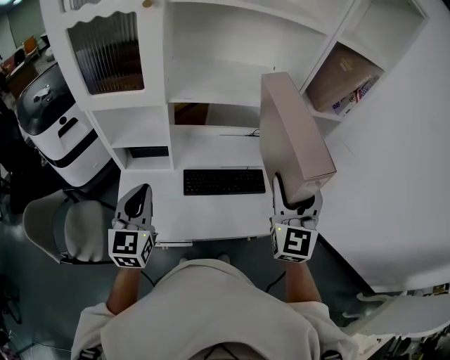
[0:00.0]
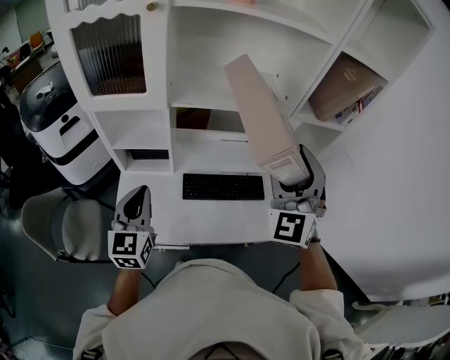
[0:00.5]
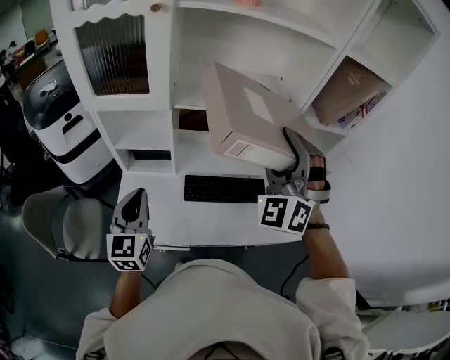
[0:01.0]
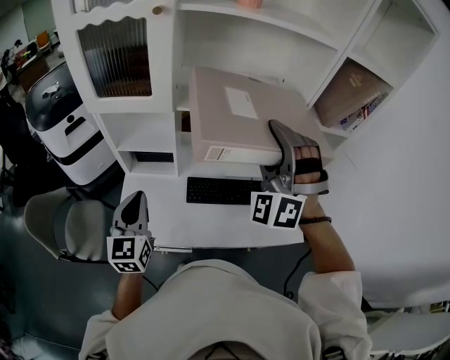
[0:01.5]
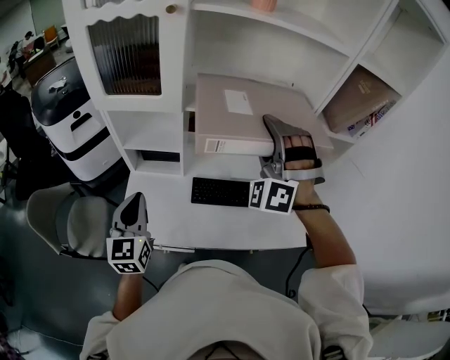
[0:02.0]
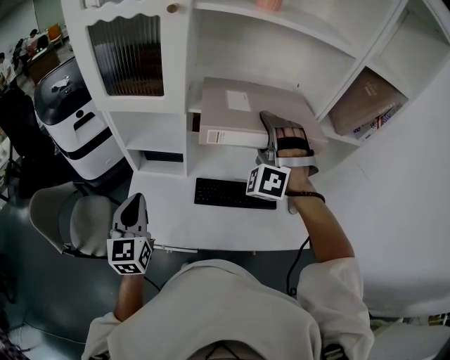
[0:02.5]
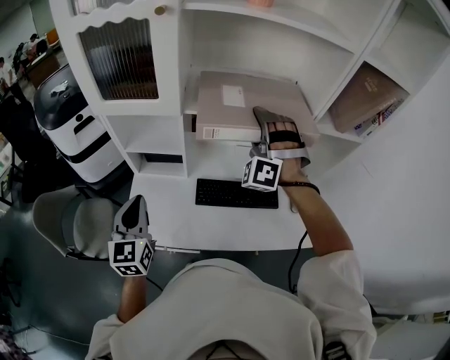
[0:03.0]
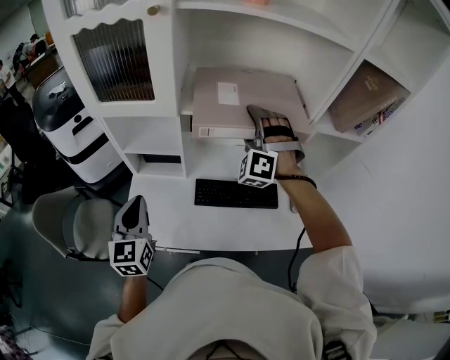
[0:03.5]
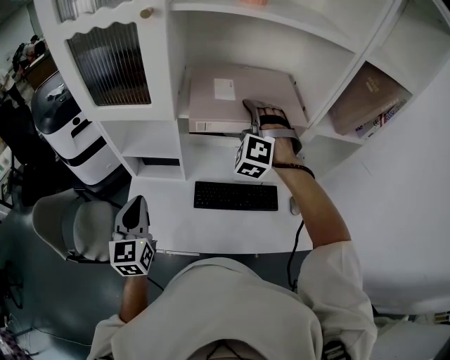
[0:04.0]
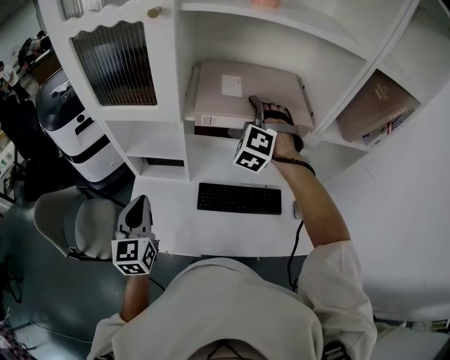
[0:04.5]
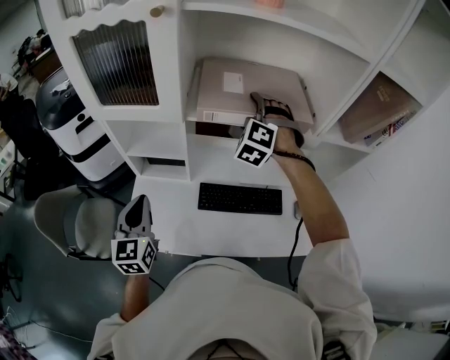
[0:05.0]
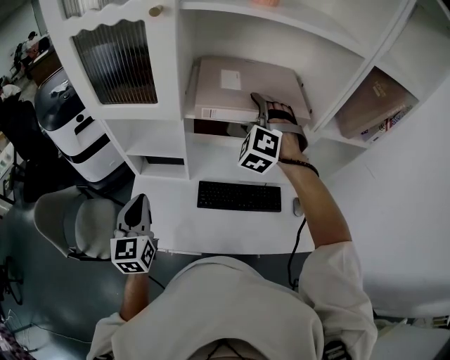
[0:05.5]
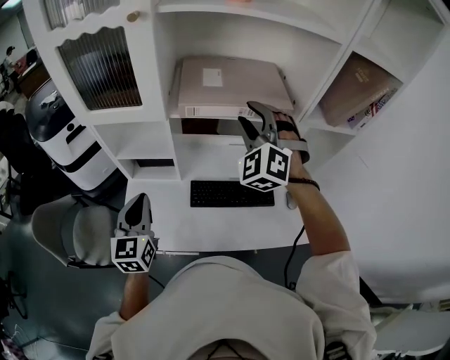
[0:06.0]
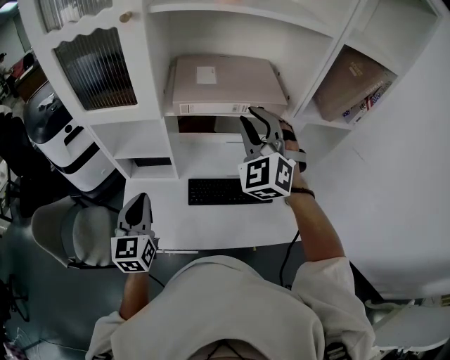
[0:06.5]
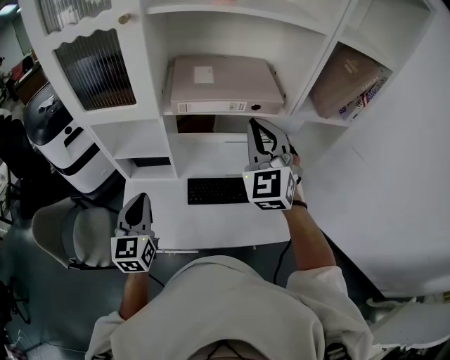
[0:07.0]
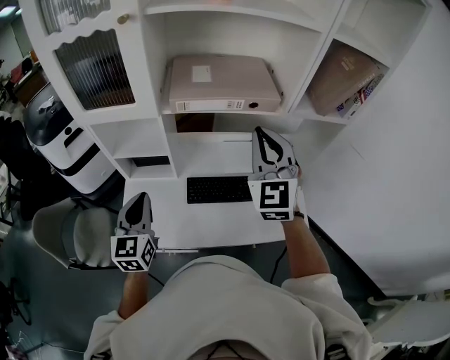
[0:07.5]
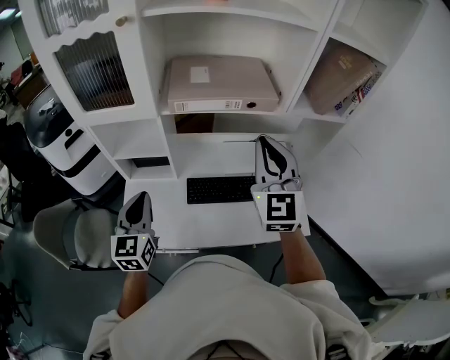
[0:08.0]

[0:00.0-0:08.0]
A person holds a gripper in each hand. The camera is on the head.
0:00.0 to 0:02.0: The right gripper goes approximately 20 cm forward and to the left, and twists approximately 70 degrees counterclockwise, seen from behind.
0:02.0 to 0:04.0: The right gripper goes roughly 15 cm forward and downward, and swivels about 20 degrees.
0:04.0 to 0:06.0: The right gripper is displaced upward and backward by approximately 10 cm, and closes its fingers.
0:06.0 to 0:08.0: The right gripper shifts roughly 15 cm backward and to the right, twists some 40 degrees clockwise, seen from behind, and closes.

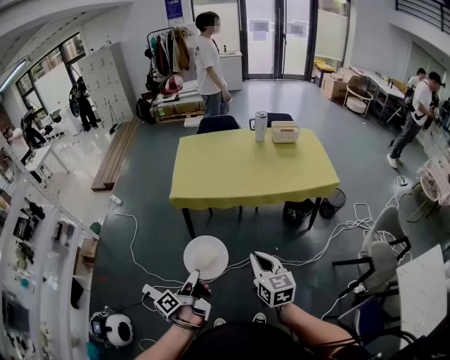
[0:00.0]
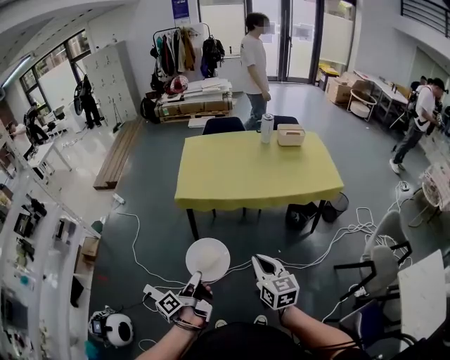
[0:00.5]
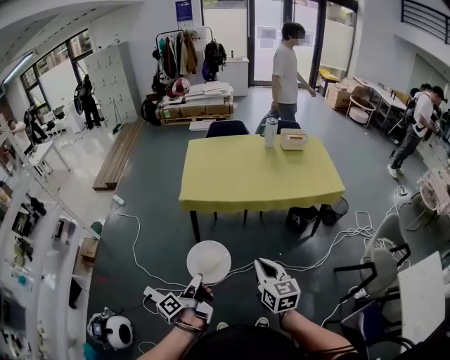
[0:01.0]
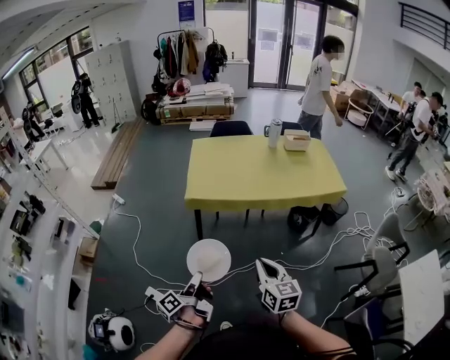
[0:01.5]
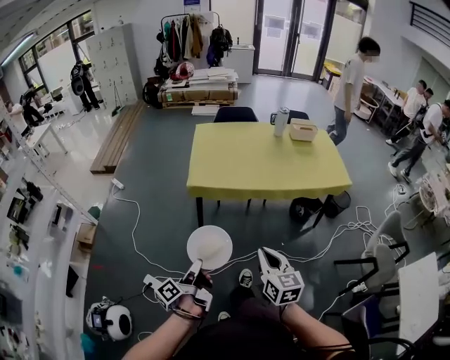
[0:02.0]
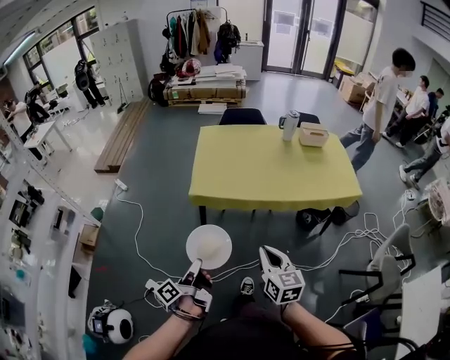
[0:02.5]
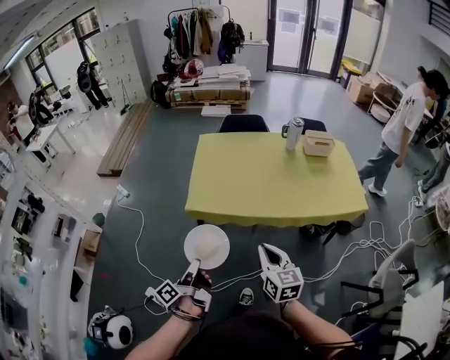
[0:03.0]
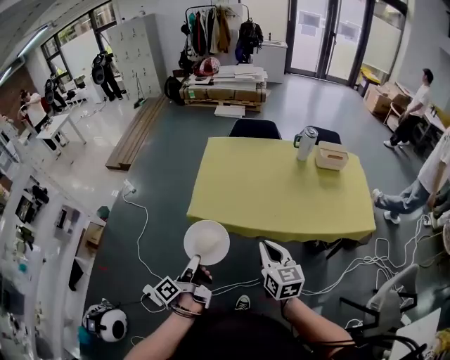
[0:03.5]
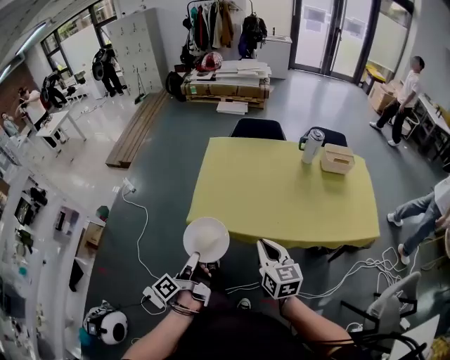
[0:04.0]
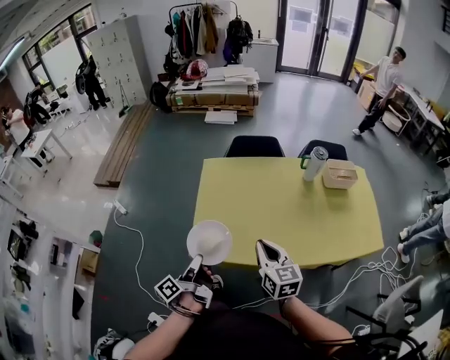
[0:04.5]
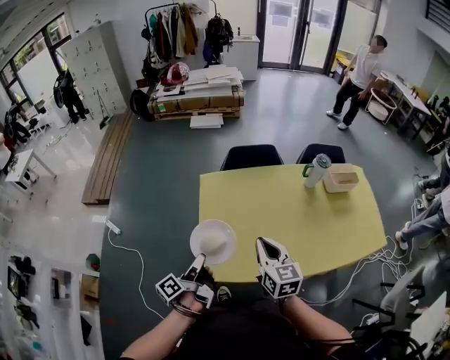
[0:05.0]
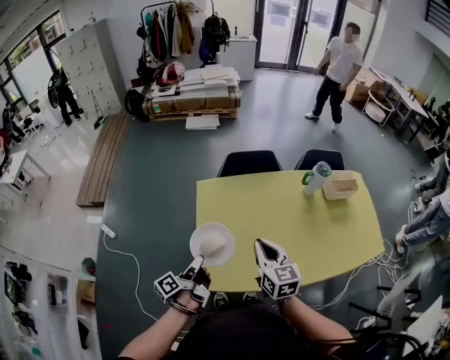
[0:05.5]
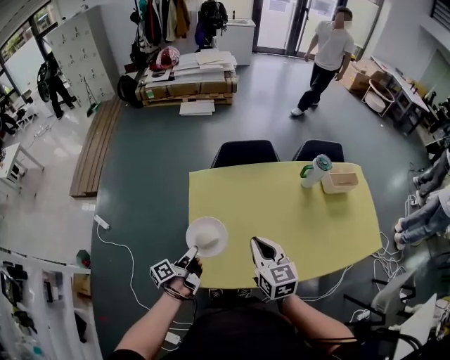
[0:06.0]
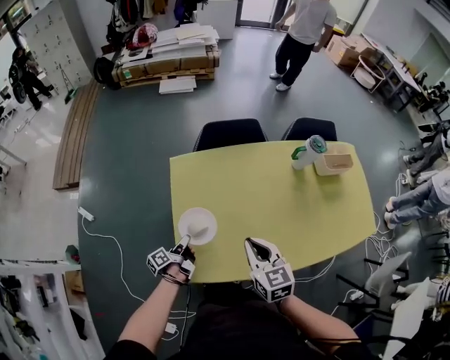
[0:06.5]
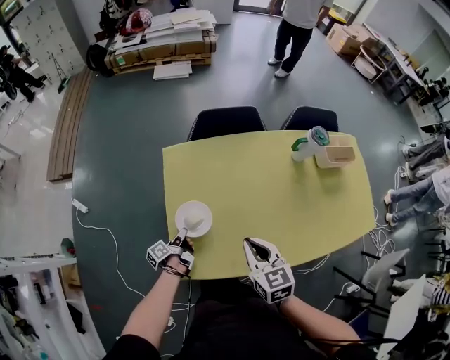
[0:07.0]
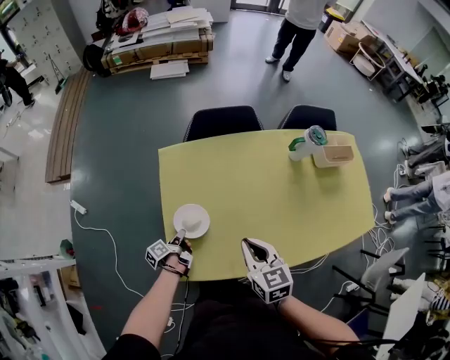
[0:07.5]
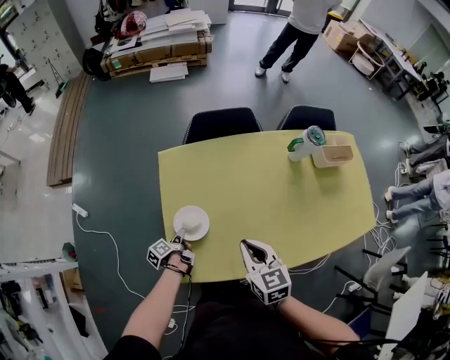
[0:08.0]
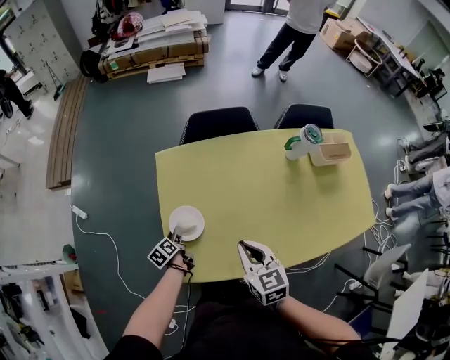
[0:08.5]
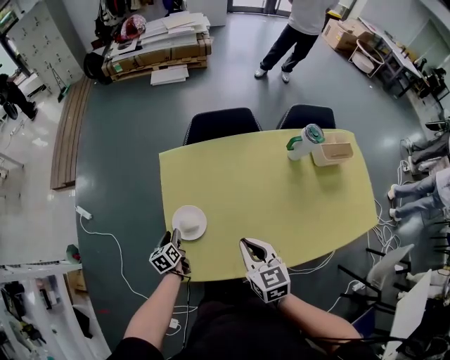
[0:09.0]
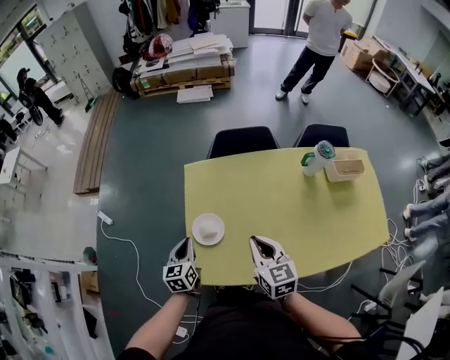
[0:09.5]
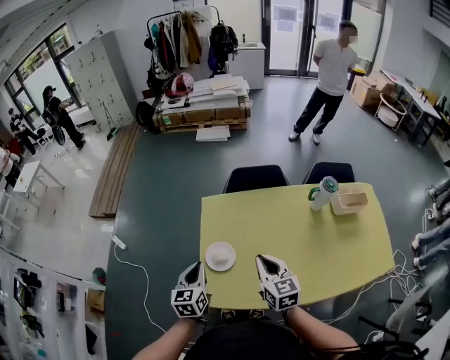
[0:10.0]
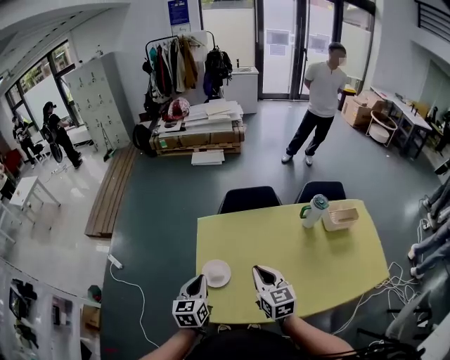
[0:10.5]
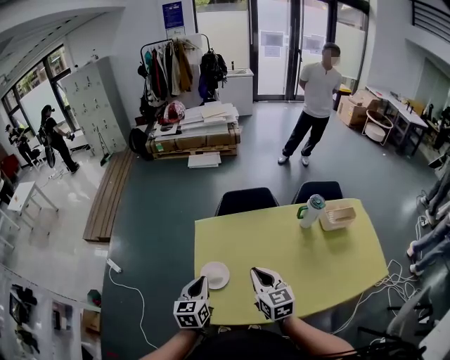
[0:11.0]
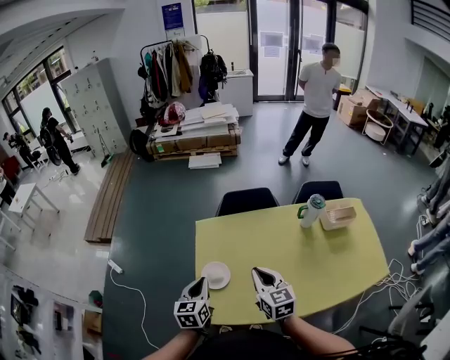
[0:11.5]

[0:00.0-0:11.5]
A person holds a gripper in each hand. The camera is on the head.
0:00.0 to 0:02.0: The right gripper changes place by some 10 cm.
0:02.0 to 0:04.0: The right gripper changes place by about 35 cm.
0:04.0 to 0:06.0: The right gripper moves approximately 35 cm.
0:06.0 to 0:07.5: The right gripper shifts approximately 10 cm downward.
0:09.5 to 0:11.5: The right gripper is displaced upward by about 5 cm.

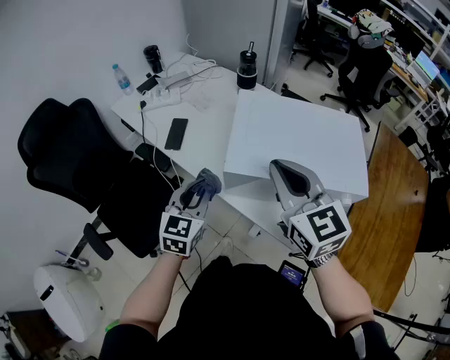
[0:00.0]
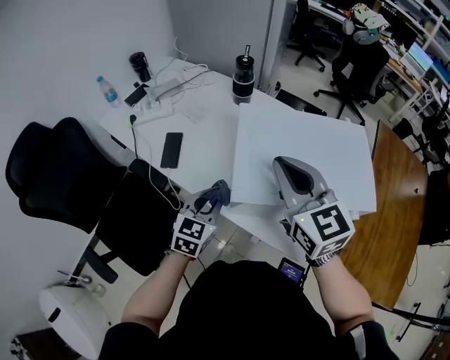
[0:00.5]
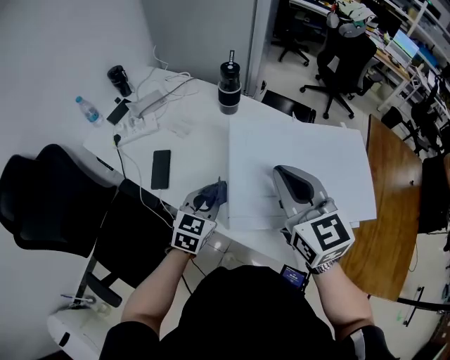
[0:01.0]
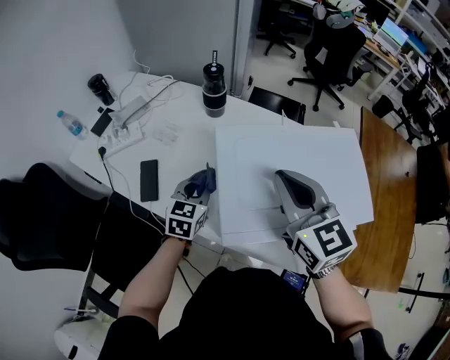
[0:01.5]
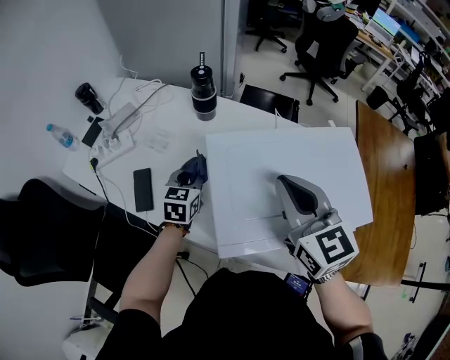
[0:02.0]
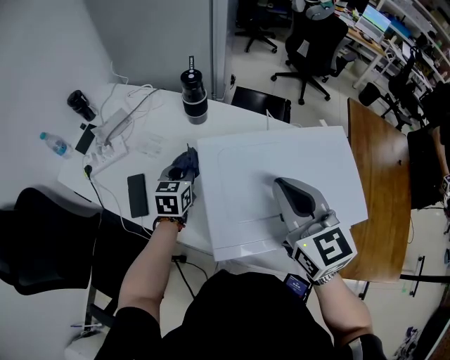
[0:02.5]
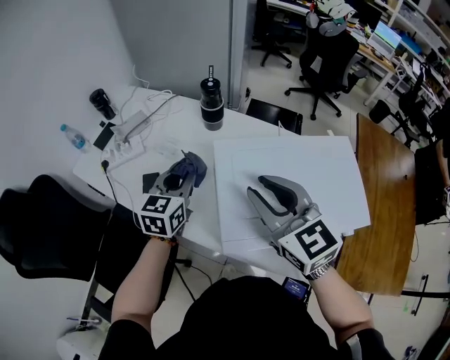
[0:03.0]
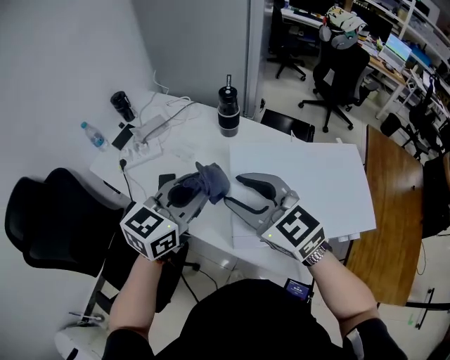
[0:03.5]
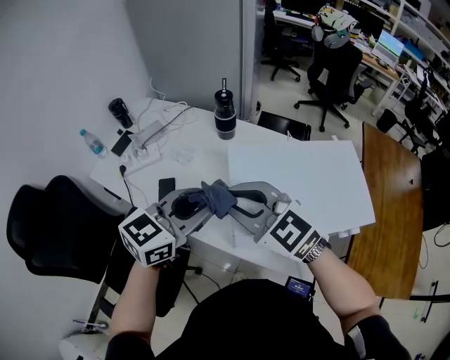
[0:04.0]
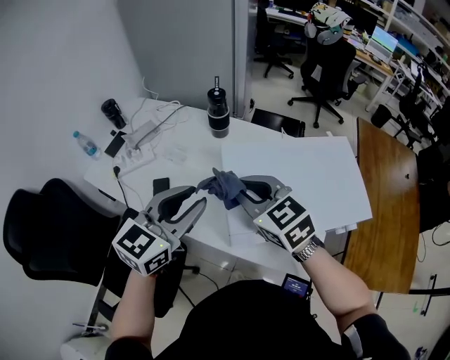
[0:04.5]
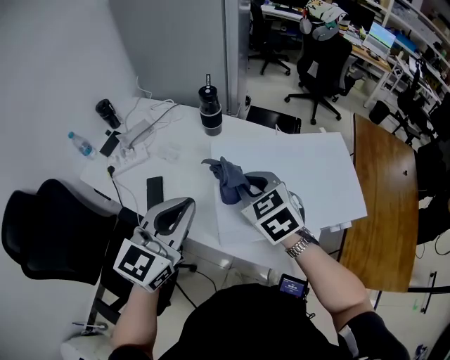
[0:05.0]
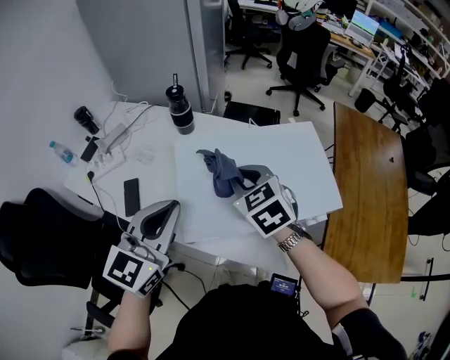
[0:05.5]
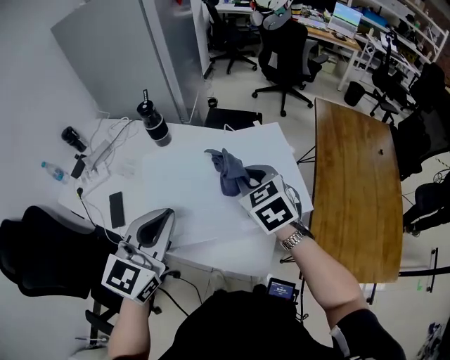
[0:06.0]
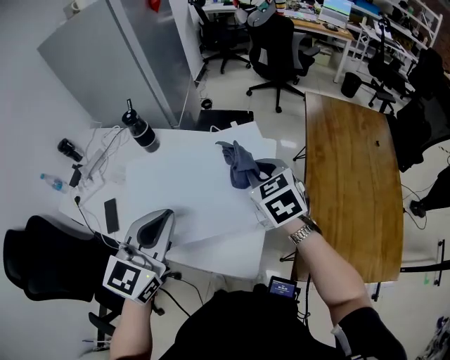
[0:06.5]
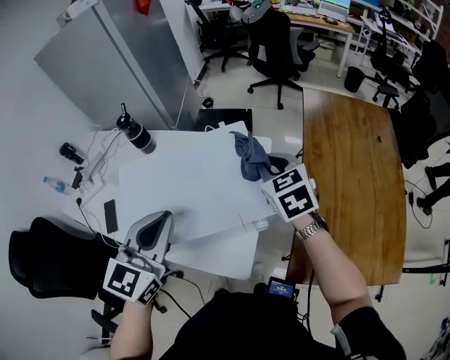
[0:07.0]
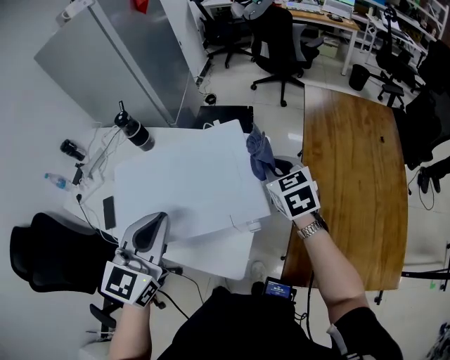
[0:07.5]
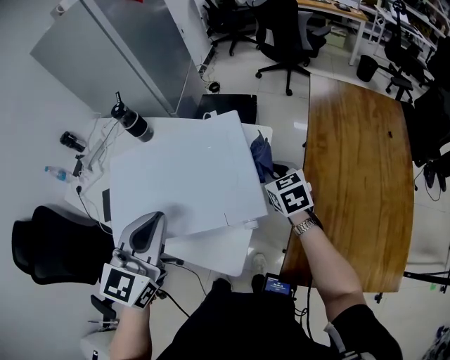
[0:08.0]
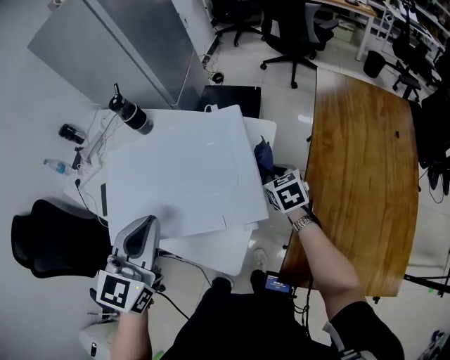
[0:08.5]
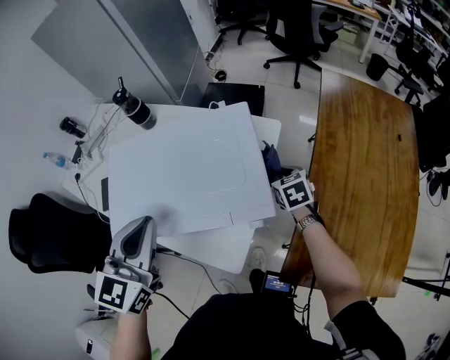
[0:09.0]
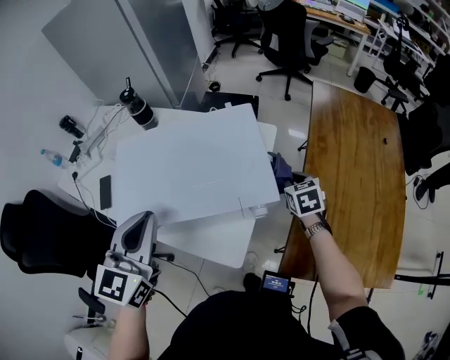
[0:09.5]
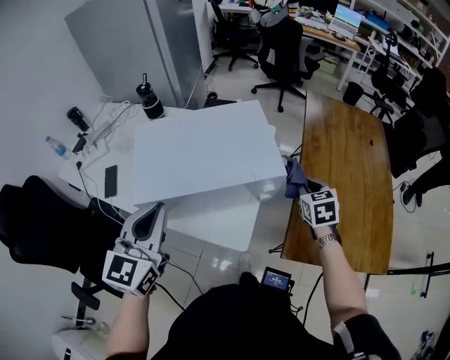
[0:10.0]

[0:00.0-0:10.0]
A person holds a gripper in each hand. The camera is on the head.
0:00.0 to 0:02.0: The left gripper shifts roughly 30 cm forward; the right gripper travels forward by roughly 15 cm.
0:02.0 to 0:04.0: The right gripper goes approximately 15 cm to the left, changes its angle by about 40 degrees, and opens, then closes again. The left gripper goes some 30 cm upward and backward, and changes its angle by about 30 degrees.
0:04.0 to 0:06.0: The right gripper heads to the right, covering about 30 cm, and rotates approximately 40 degrees. Meanwhile the left gripper heads to the right, covering roughly 15 cm.
0:06.0 to 0:08.0: The left gripper is displaced to the right by some 15 cm. The right gripper is displaced to the right and downward by roughly 25 cm.
0:08.0 to 0:10.0: The right gripper goes about 15 cm backward; the left gripper heads backward and to the left, covering roughly 15 cm.
